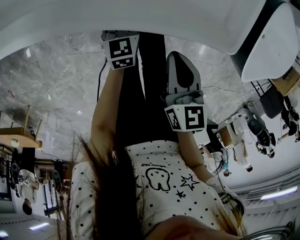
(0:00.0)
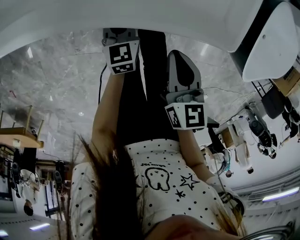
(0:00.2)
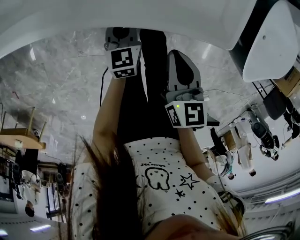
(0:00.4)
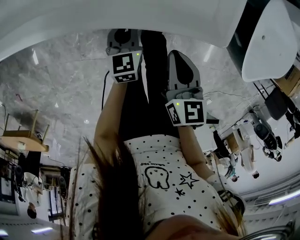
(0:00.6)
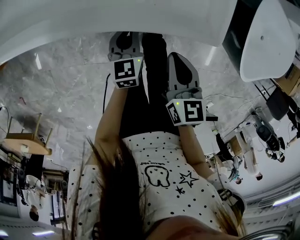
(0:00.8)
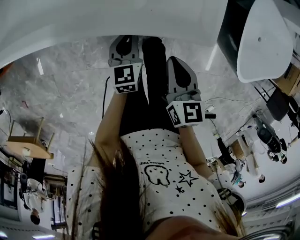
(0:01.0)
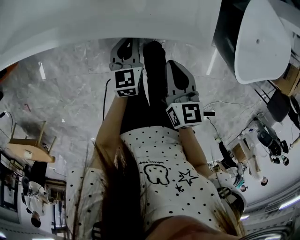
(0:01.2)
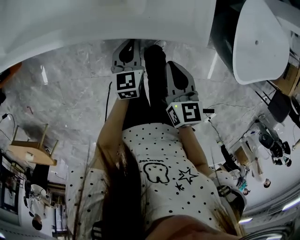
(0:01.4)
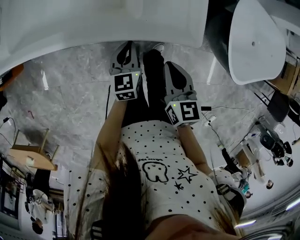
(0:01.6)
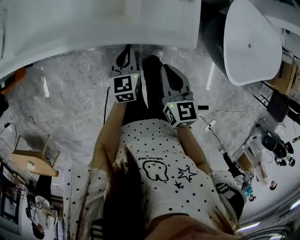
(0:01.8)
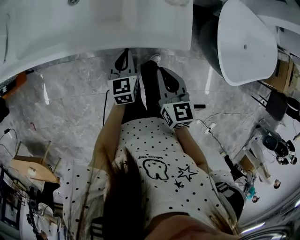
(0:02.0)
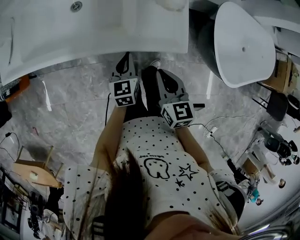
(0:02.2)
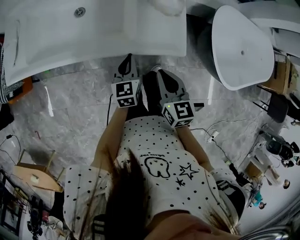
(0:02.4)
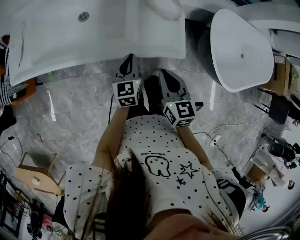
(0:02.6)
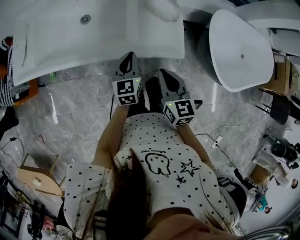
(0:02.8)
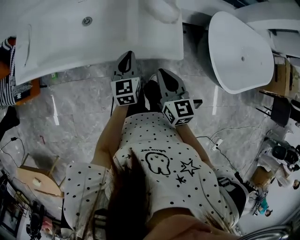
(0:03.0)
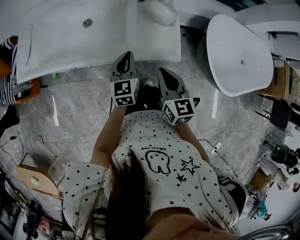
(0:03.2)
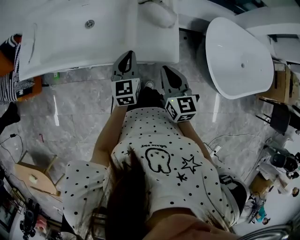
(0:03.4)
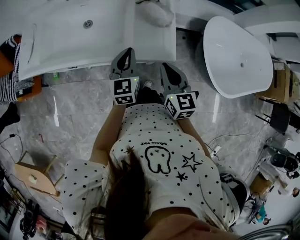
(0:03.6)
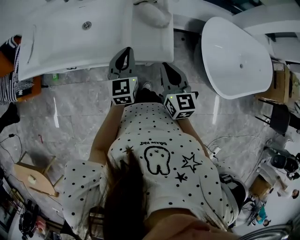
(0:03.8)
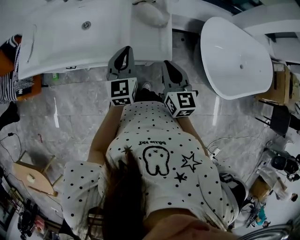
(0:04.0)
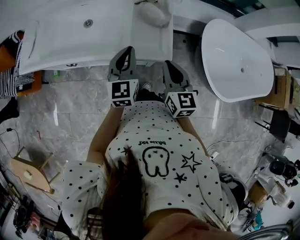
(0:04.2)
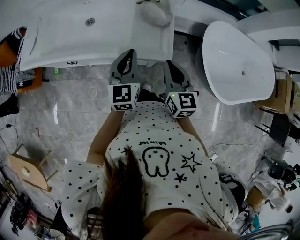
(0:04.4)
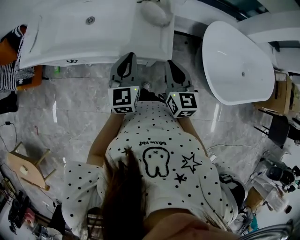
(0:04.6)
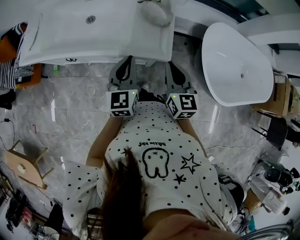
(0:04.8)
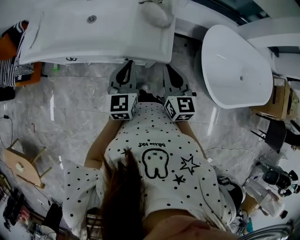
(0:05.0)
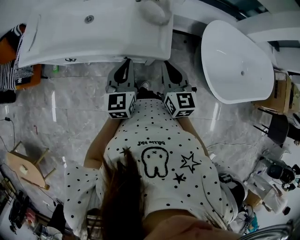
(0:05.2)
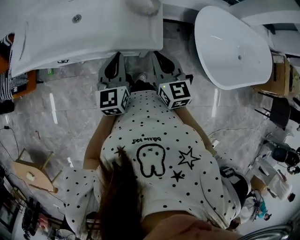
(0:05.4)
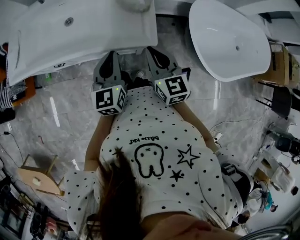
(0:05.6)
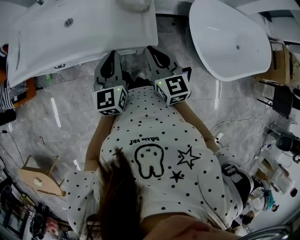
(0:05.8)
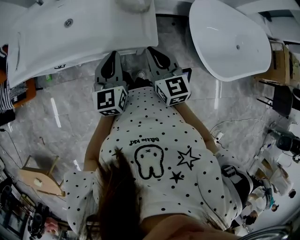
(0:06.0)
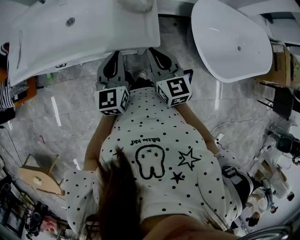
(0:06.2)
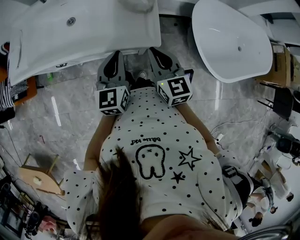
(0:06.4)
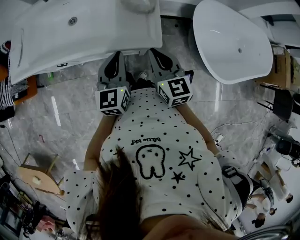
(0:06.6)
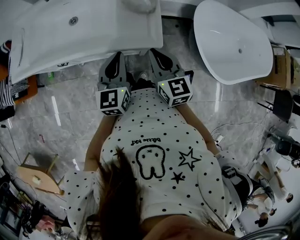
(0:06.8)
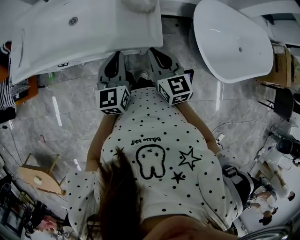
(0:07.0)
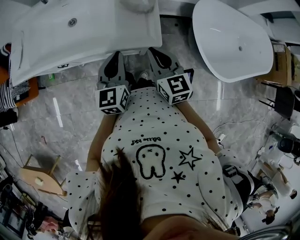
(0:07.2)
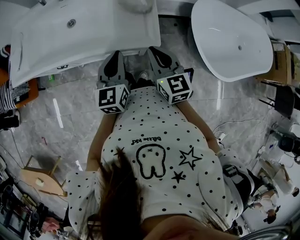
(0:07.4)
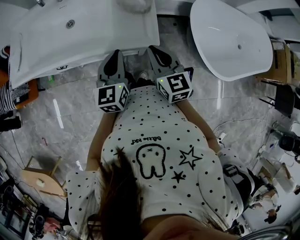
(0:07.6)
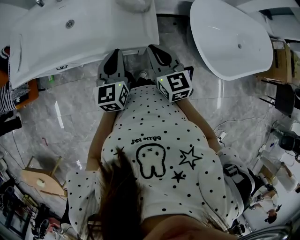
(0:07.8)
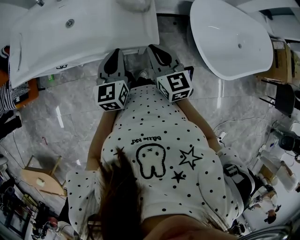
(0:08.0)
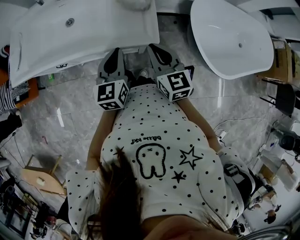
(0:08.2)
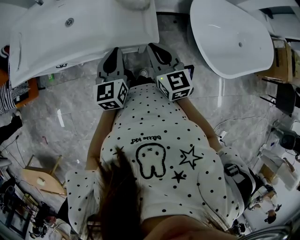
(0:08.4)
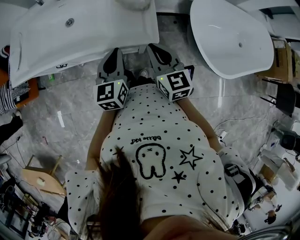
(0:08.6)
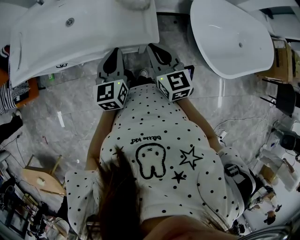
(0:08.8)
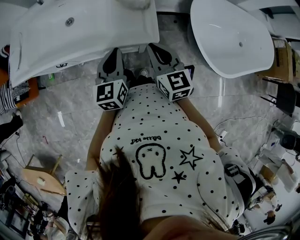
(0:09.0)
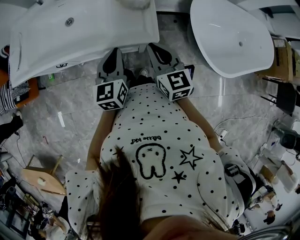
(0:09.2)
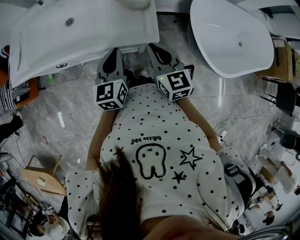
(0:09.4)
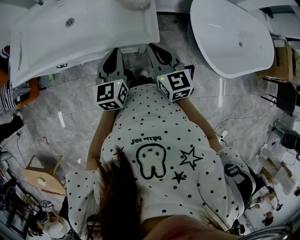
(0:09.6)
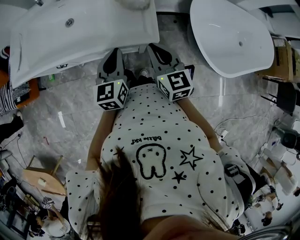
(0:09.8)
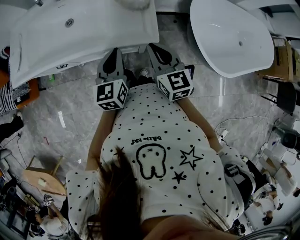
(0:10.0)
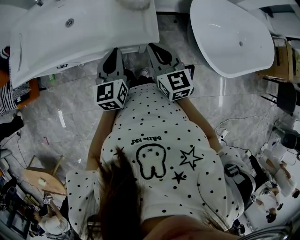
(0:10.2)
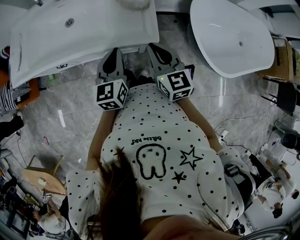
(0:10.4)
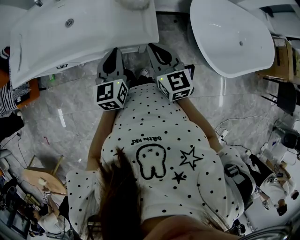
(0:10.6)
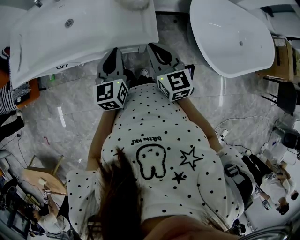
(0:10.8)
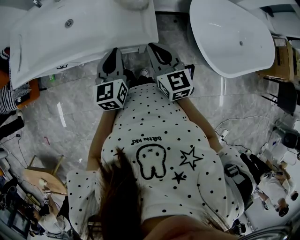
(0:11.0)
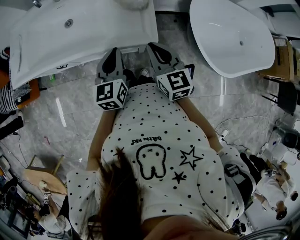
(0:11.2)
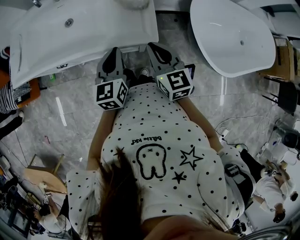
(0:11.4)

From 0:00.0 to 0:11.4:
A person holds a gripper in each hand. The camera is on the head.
From 0:00.0 to 0:01.4: The right gripper moves upward, approximately 10 cm; the left gripper travels upward by roughly 15 cm.
From 0:01.4 to 0:02.8: The grippers both shift upward by roughly 15 cm.
From 0:02.8 to 0:04.2: The right gripper moves to the right, roughly 10 cm. Meanwhile the left gripper is displaced upward and to the right by approximately 15 cm.
From 0:04.2 to 0:05.6: The left gripper ends up roughly 5 cm from where it was.
From 0:05.6 to 0:07.2: Both grippers stay about where they are.
From 0:07.2 to 0:08.6: The grippers move only a little.
From 0:08.6 to 0:11.4: Both grippers stay about where they are.

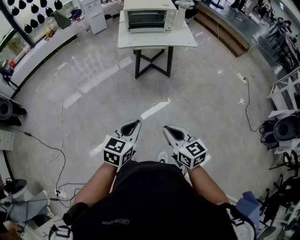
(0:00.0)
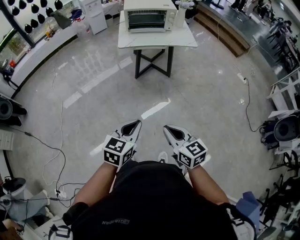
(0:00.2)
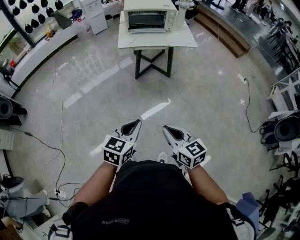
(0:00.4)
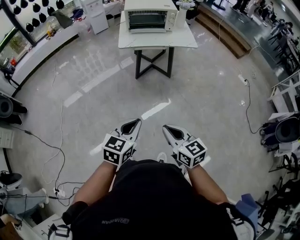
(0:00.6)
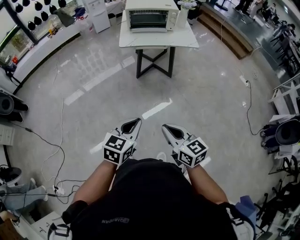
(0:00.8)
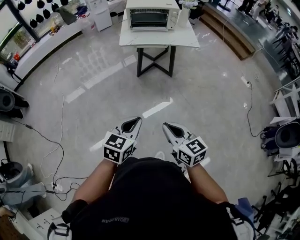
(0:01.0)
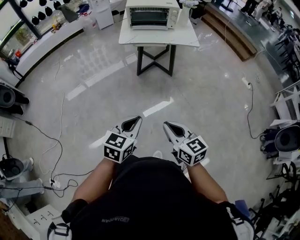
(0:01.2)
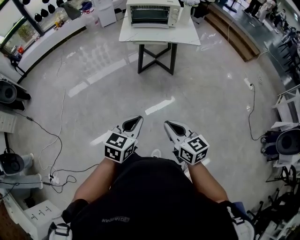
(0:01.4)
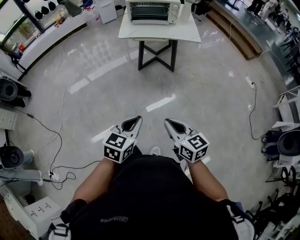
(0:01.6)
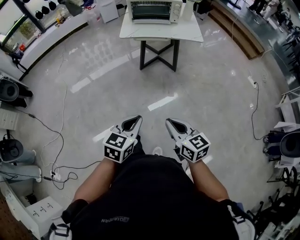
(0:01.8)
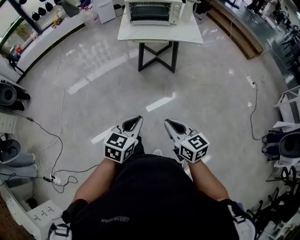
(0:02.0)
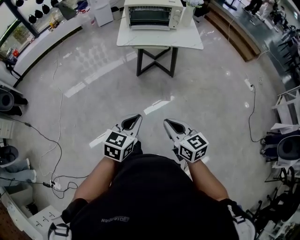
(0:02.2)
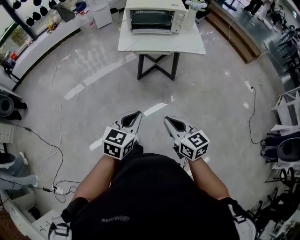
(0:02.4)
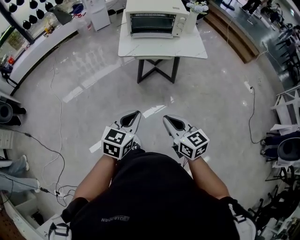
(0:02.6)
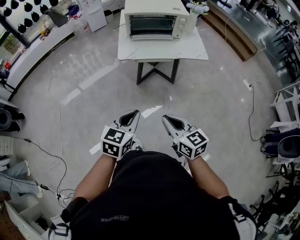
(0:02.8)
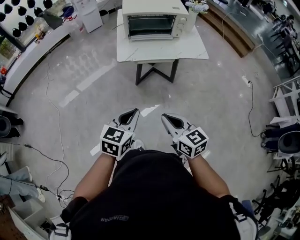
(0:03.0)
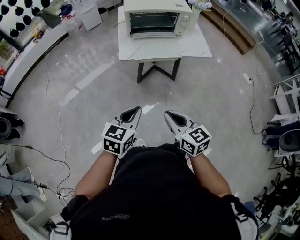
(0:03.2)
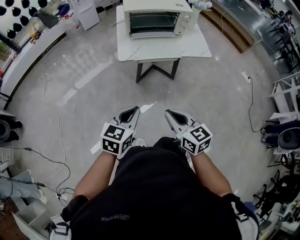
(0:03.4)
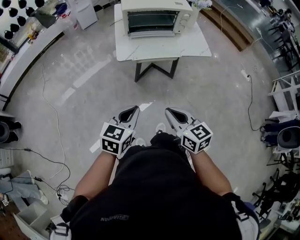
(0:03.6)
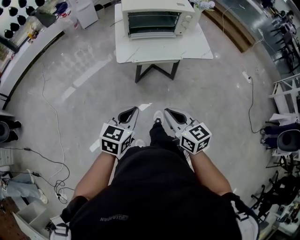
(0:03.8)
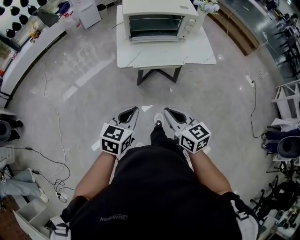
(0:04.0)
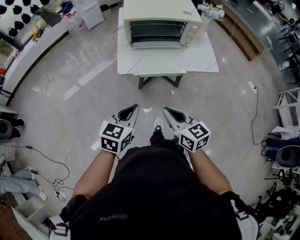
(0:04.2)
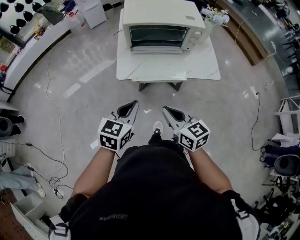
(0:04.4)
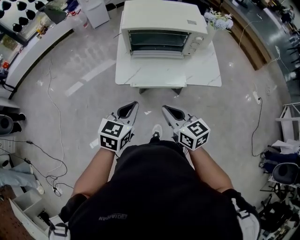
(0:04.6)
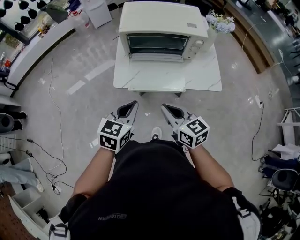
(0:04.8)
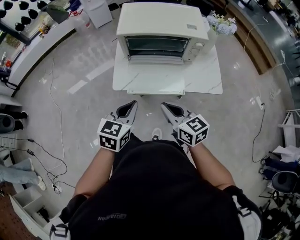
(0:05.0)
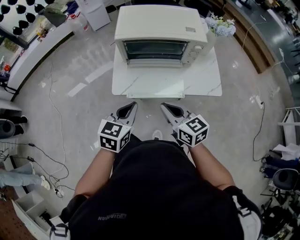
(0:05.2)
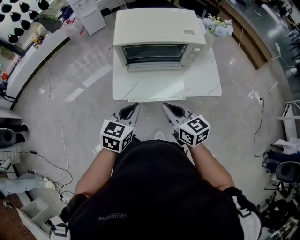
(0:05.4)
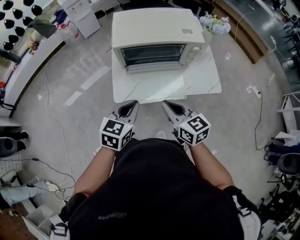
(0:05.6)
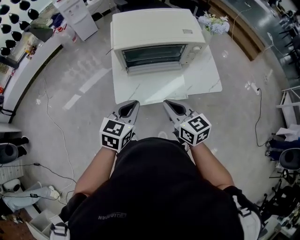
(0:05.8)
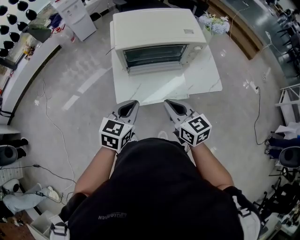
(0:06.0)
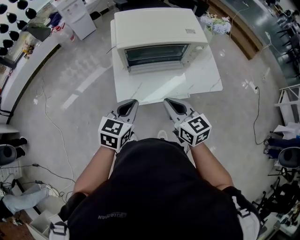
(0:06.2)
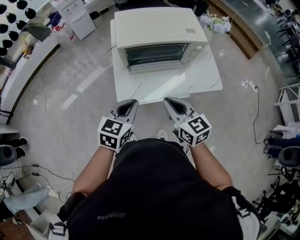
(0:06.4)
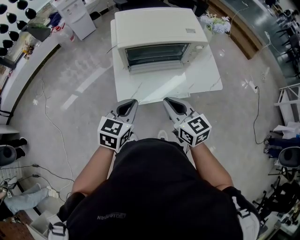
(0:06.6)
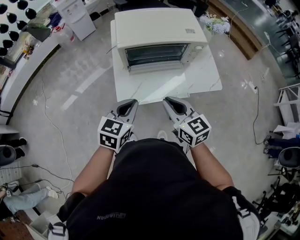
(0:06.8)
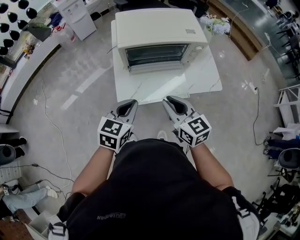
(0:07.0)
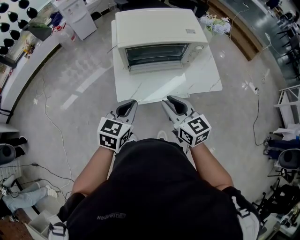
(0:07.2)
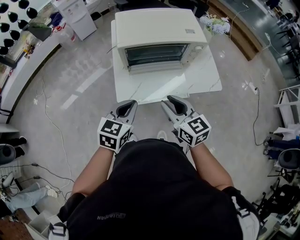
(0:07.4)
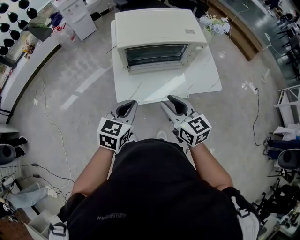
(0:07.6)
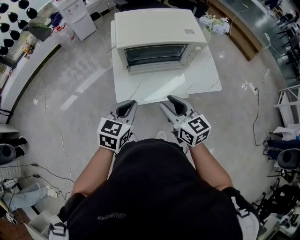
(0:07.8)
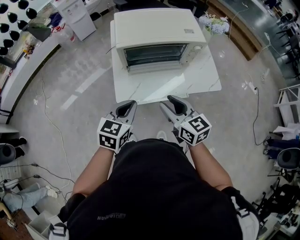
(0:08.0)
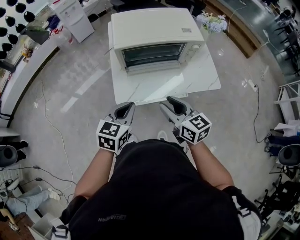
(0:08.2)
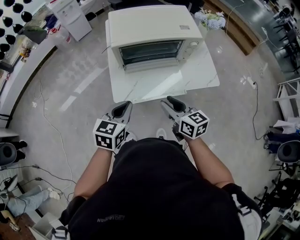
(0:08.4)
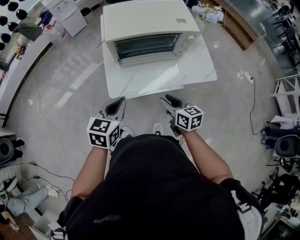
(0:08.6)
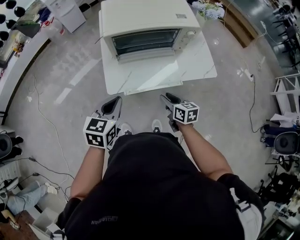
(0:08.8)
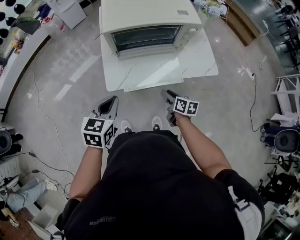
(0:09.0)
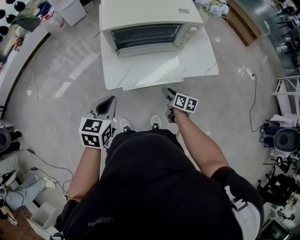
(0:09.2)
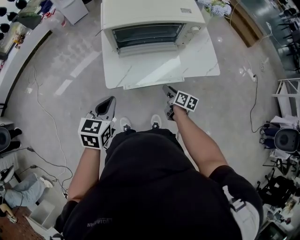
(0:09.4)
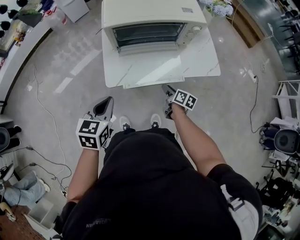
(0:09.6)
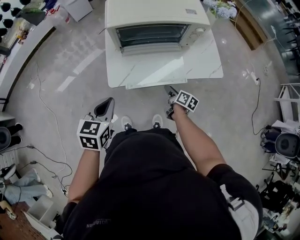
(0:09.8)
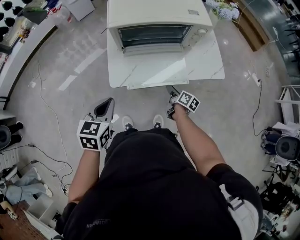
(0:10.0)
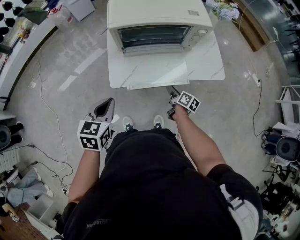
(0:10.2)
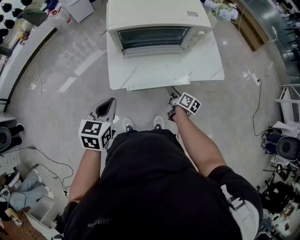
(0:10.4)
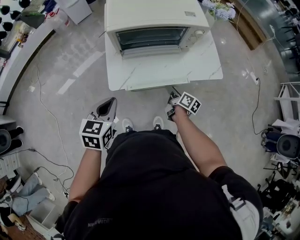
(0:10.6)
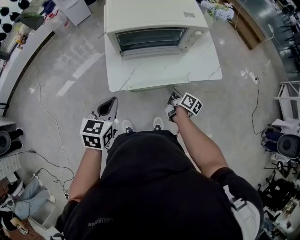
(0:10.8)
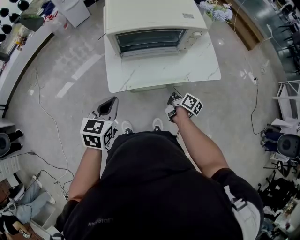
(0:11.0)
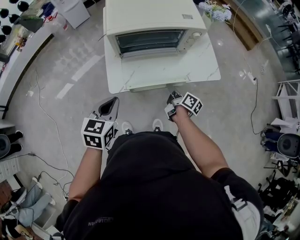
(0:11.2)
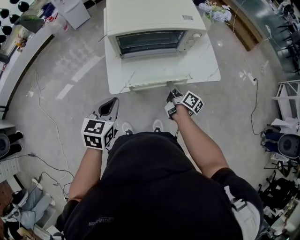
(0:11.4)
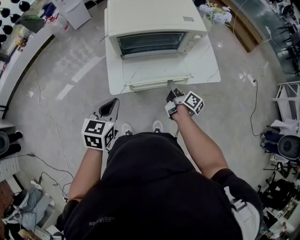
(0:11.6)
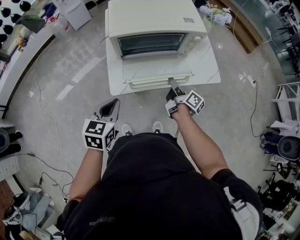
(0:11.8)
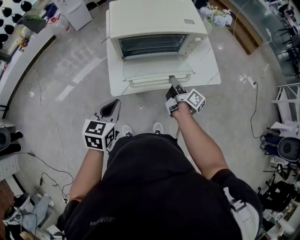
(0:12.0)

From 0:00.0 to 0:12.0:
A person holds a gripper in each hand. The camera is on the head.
From 0:00.0 to 0:01.6: Both grippers travel together to the right, roughly 10 cm.
From 0:01.6 to 0:03.0: The grippers both shift forward and to the left by some 30 cm.
From 0:03.0 to 0:04.4: The grippers both shift forward by about 25 cm.
From 0:04.4 to 0:06.0: The two grippers go approximately 15 cm forward.
From 0:06.0 to 0:07.6: The right gripper opens up.
From 0:07.6 to 0:09.0: The left gripper shifts by about 5 cm, while the right gripper moves downward, some 25 cm, and rotates about 40 degrees.
From 0:09.0 to 0:10.4: The right gripper changes place by some 5 cm, and swivels approximately 20 degrees.
From 0:10.4 to 0:12.0: The right gripper is displaced upward and forward by approximately 15 cm, and swivels approximately 20 degrees.

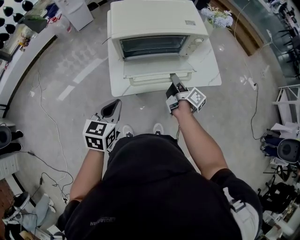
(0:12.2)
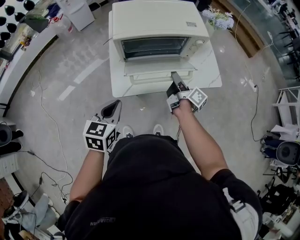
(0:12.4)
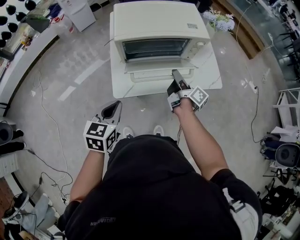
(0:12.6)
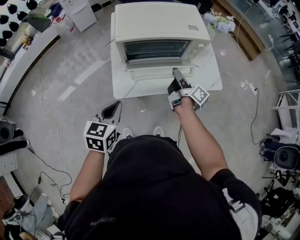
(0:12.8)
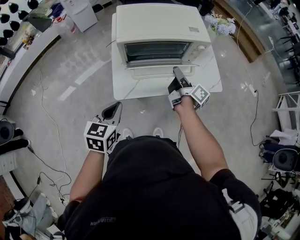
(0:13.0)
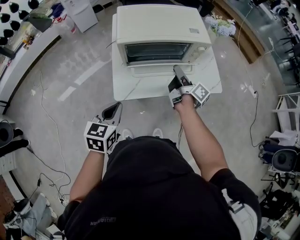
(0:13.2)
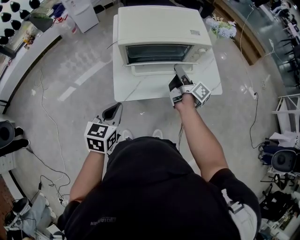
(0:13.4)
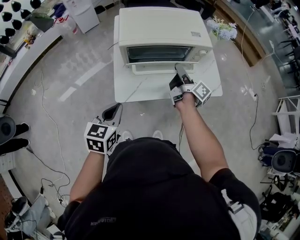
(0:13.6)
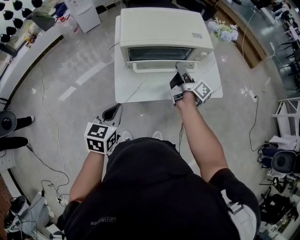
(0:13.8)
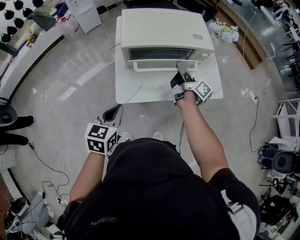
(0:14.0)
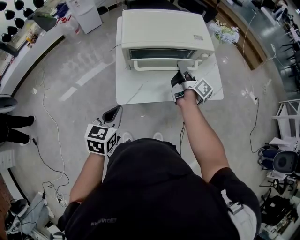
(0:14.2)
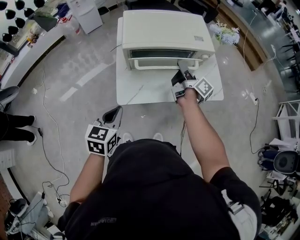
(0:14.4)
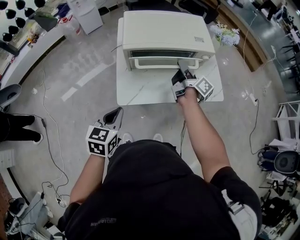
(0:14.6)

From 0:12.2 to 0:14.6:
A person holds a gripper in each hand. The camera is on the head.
From 0:12.2 to 0:13.4: The right gripper goes about 10 cm forward and upward.
From 0:13.4 to 0:14.6: The right gripper ends up roughly 5 cm from where it was.
